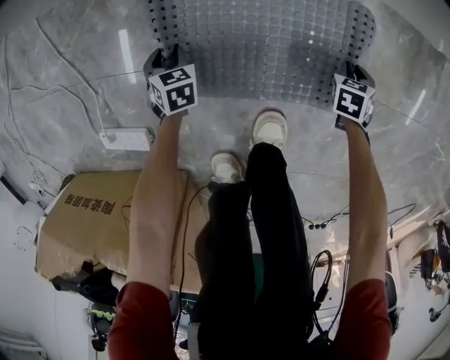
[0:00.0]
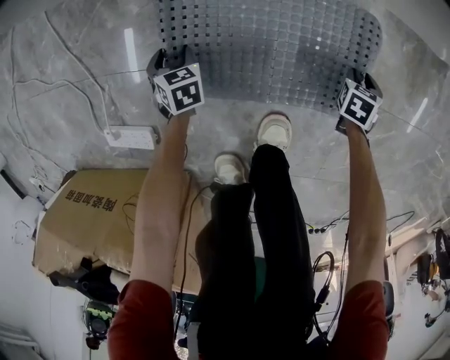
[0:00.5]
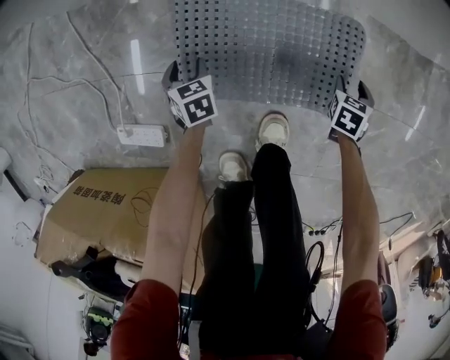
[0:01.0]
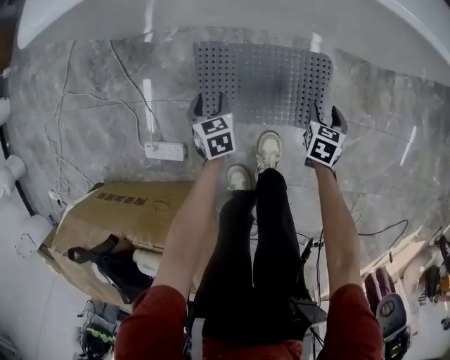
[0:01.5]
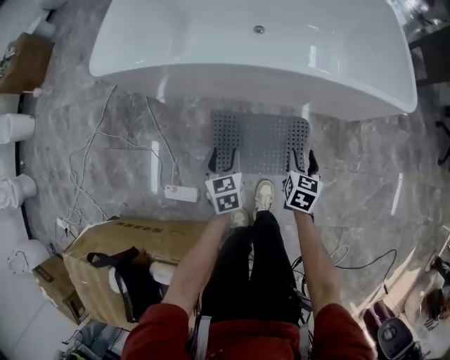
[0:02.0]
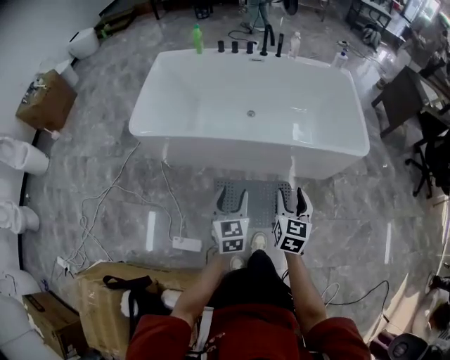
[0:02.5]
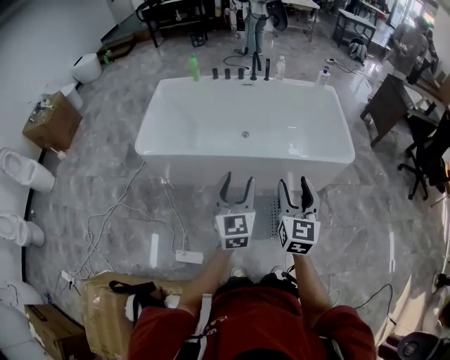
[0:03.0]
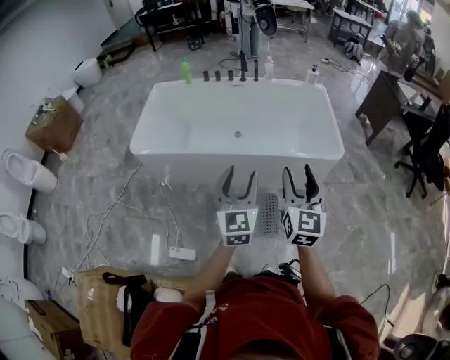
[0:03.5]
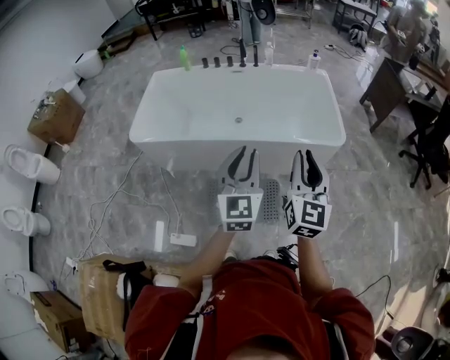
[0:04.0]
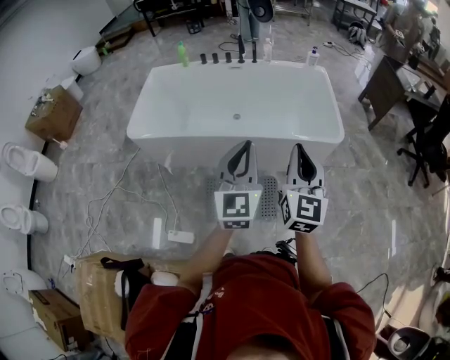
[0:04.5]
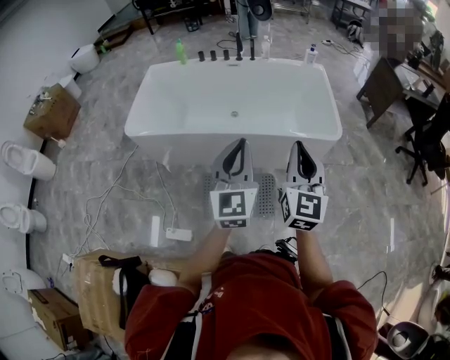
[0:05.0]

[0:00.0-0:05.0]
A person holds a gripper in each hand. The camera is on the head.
0:00.0 to 0:02.5: Both grippers move upward, approximately 80 cm. The left gripper tilts its fingers some 40 degrees upward, and opens up. The right gripper tilts its fingers some 50 degrees upward, and opens its fingers.
0:02.5 to 0:05.0: Both grippers travel together upward and to the right, roughly 30 cm. The left gripper turns by about 30 degrees, and closes; the right gripper changes its angle by approximately 30 degrees, and closes up.

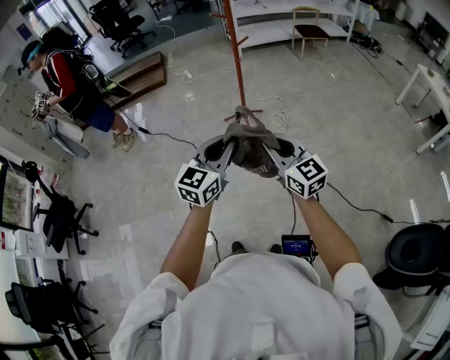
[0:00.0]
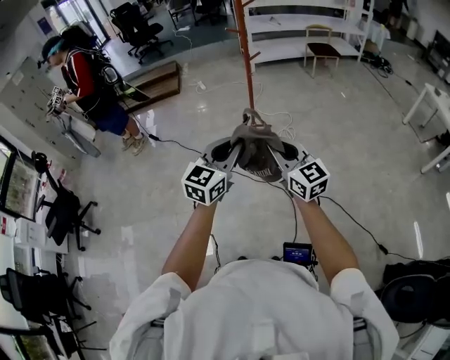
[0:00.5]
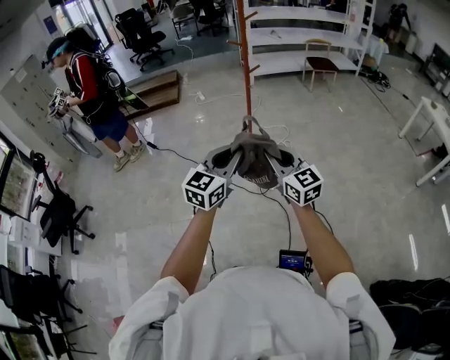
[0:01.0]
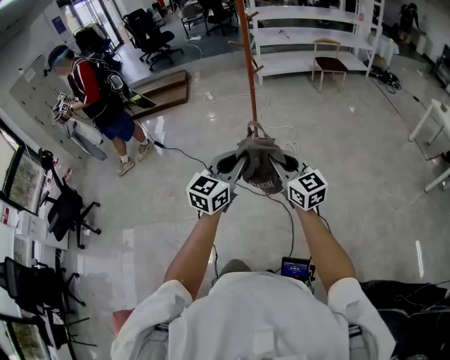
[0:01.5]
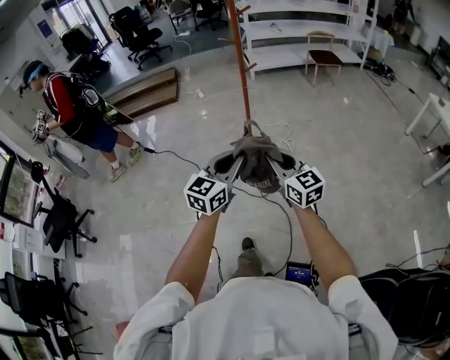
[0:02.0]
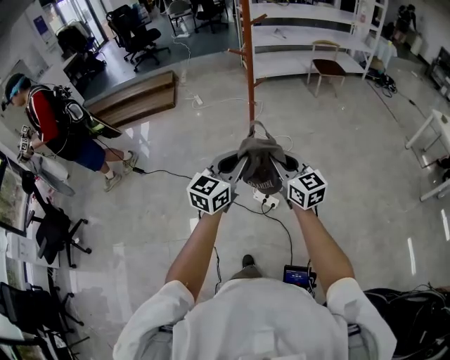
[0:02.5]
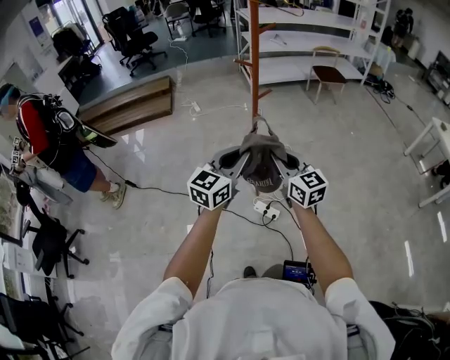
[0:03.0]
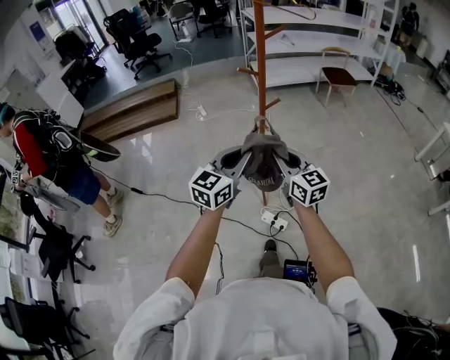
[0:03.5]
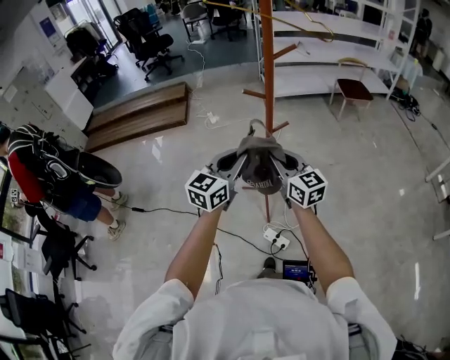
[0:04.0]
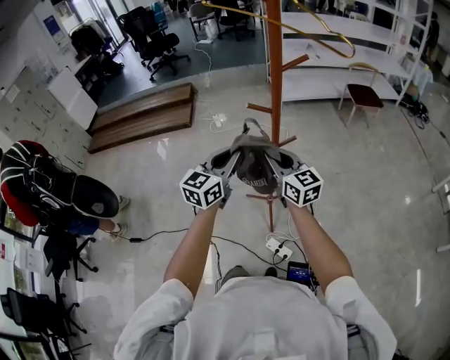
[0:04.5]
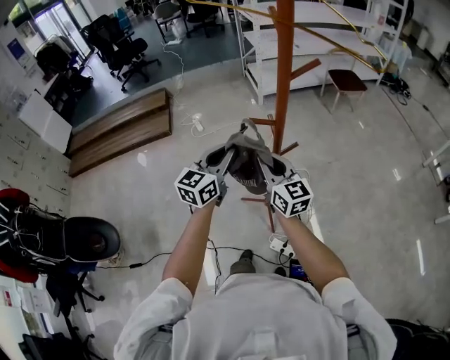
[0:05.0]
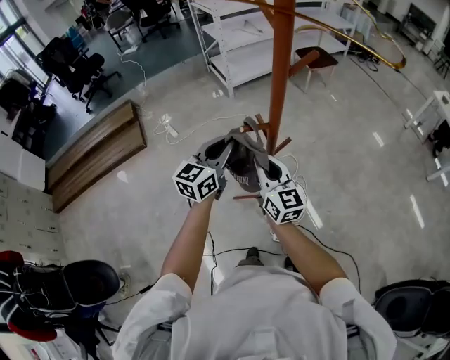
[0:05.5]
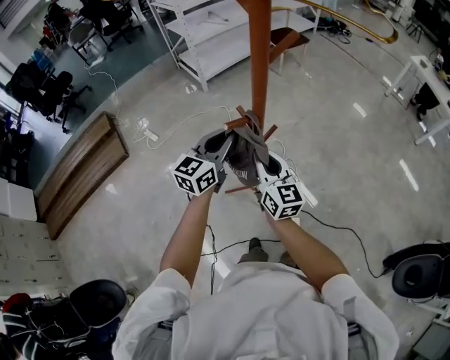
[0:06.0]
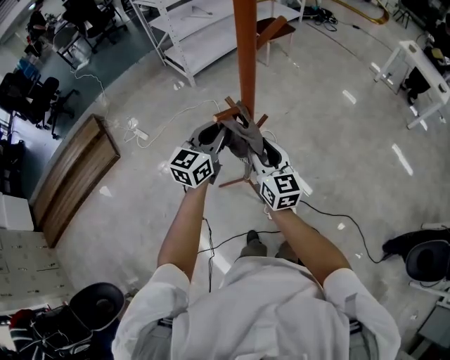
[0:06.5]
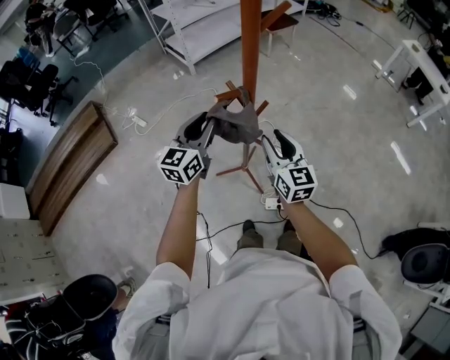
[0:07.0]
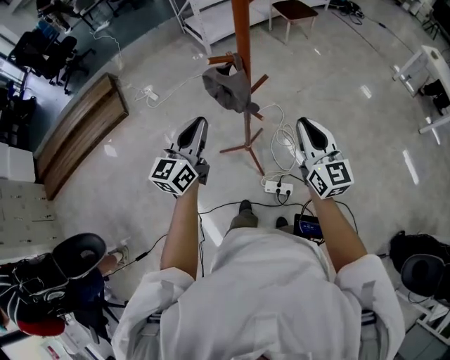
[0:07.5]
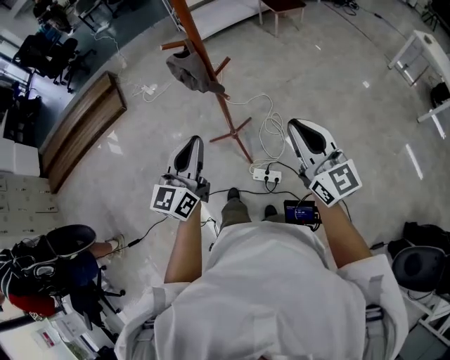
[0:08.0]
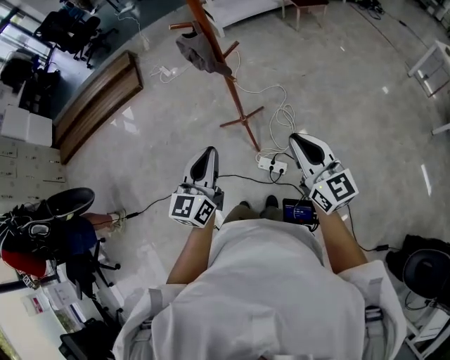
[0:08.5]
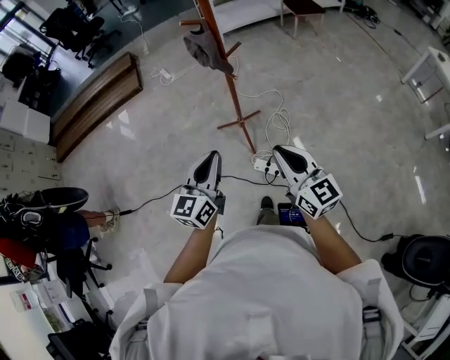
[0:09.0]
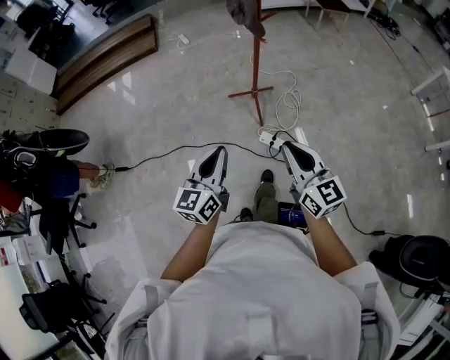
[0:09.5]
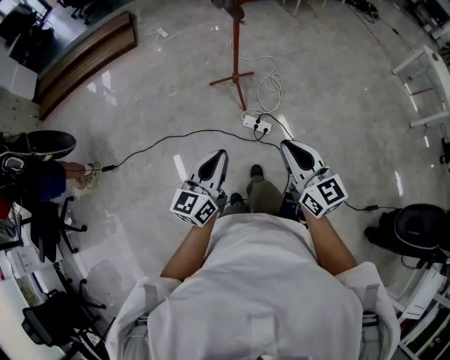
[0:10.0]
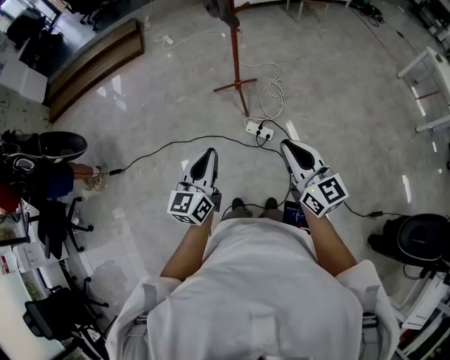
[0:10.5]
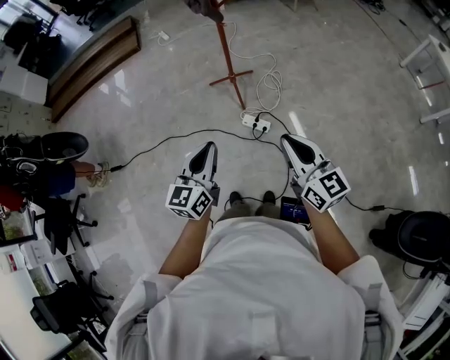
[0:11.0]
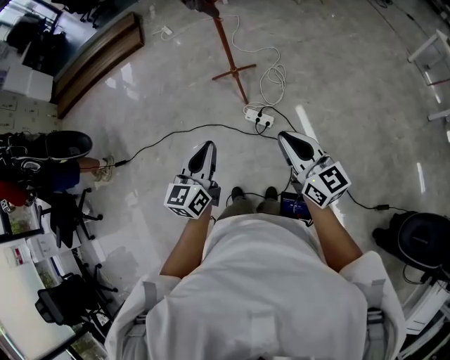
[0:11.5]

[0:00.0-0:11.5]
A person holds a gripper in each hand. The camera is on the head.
0:00.0 to 0:02.0: The two grippers go about 10 cm forward and to the right.
0:02.0 to 0:04.0: The two grippers travel together, forward, approximately 50 cm.
0:04.0 to 0:06.0: The left gripper shifts by roughly 30 cm, and turns by about 30 degrees, while the right gripper changes place by some 25 cm, and turns by some 40 degrees.
0:06.0 to 0:07.5: The right gripper is displaced to the right and backward by approximately 20 cm, and opens, then closes again. The left gripper heads backward, covering roughly 15 cm.
0:07.5 to 0:09.5: The two grippers travel together, backward, approximately 50 cm. The right gripper swivels roughly 30 degrees; the left gripper rotates some 20 degrees.
0:09.5 to 0:11.5: The two grippers go about 15 cm to the right and backward.

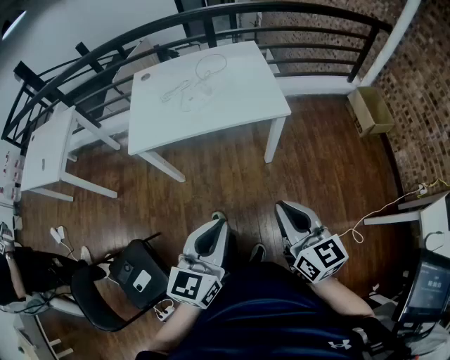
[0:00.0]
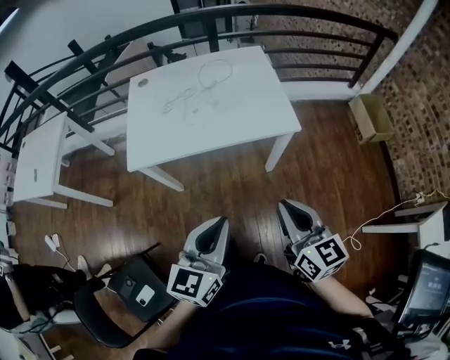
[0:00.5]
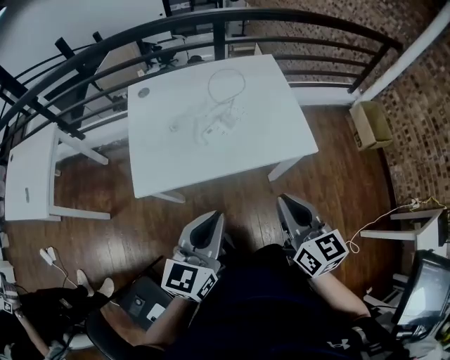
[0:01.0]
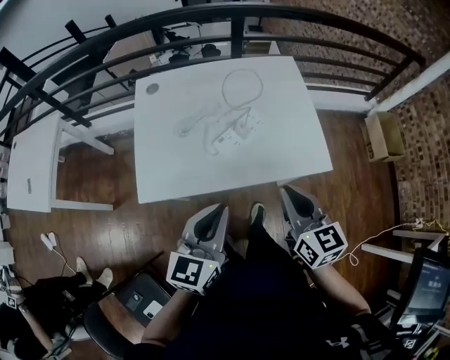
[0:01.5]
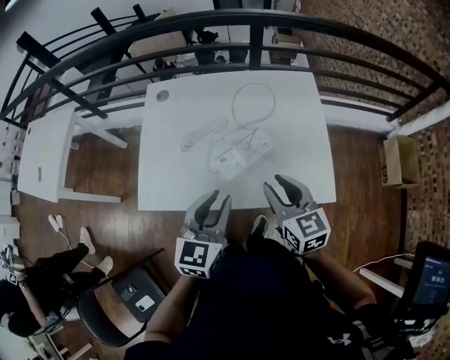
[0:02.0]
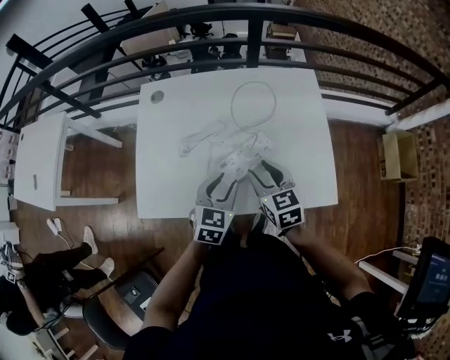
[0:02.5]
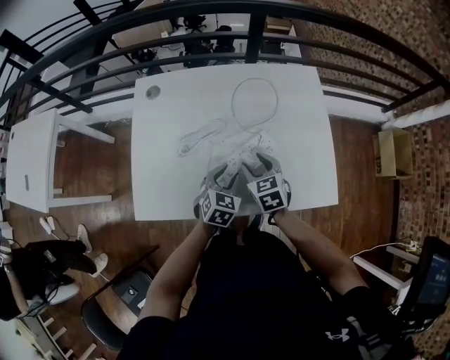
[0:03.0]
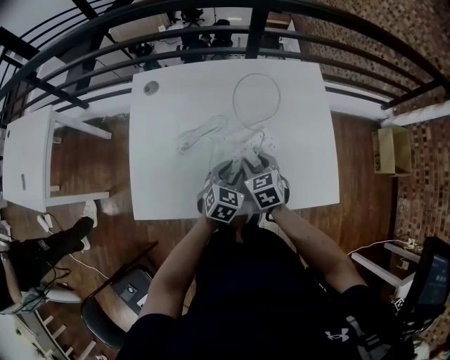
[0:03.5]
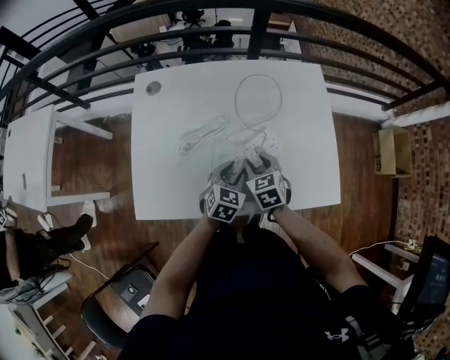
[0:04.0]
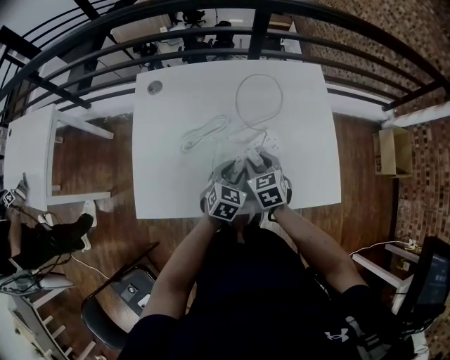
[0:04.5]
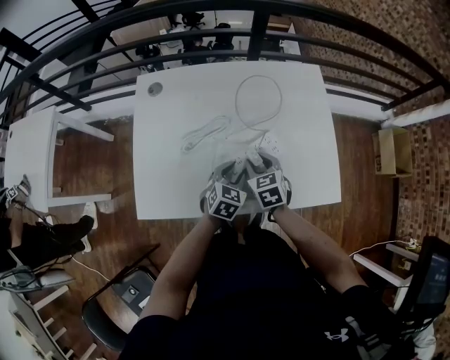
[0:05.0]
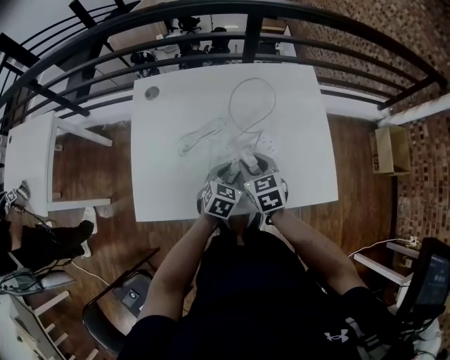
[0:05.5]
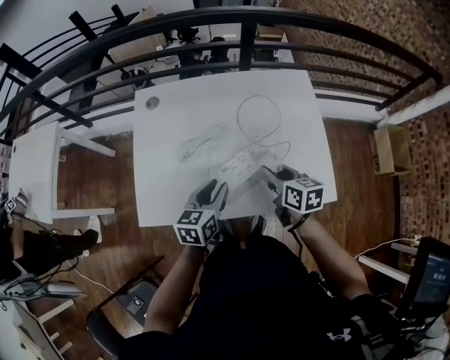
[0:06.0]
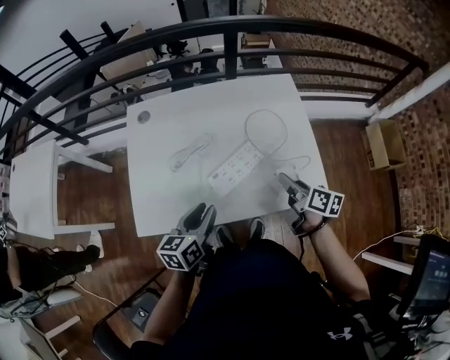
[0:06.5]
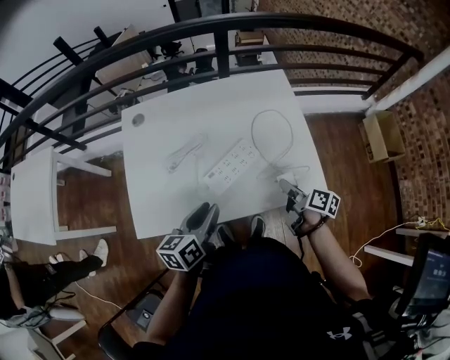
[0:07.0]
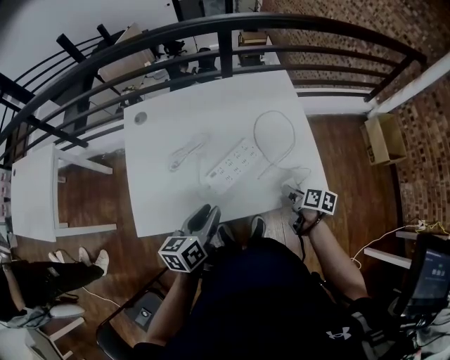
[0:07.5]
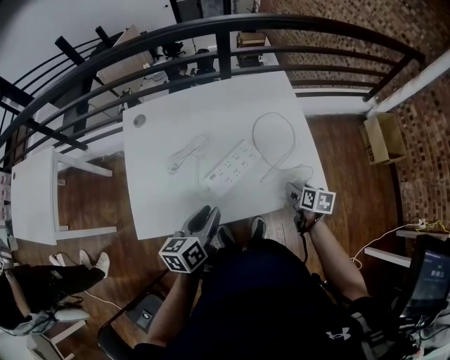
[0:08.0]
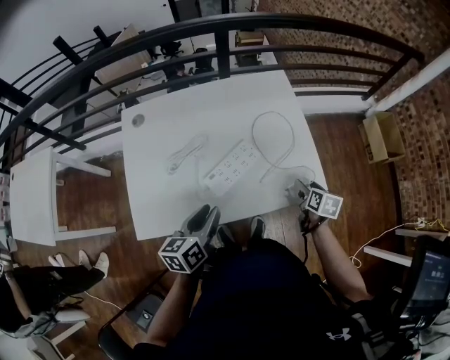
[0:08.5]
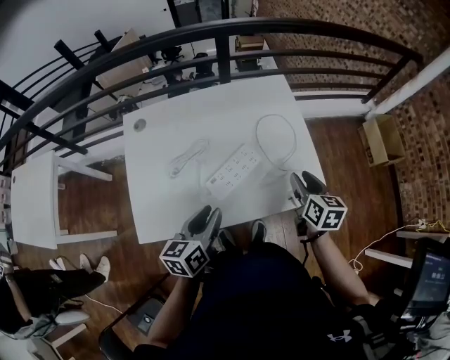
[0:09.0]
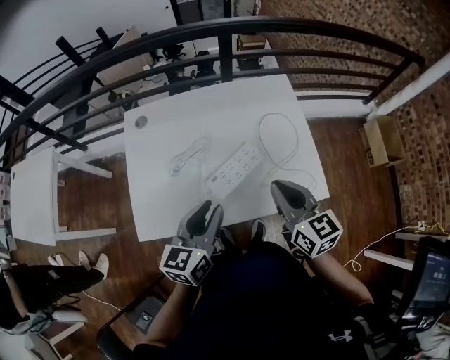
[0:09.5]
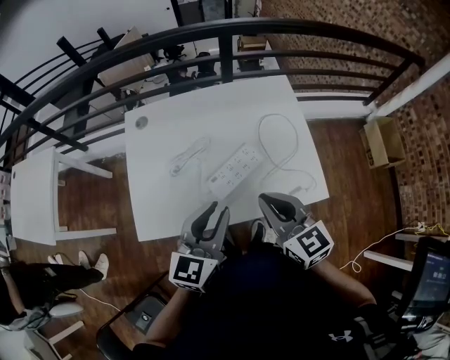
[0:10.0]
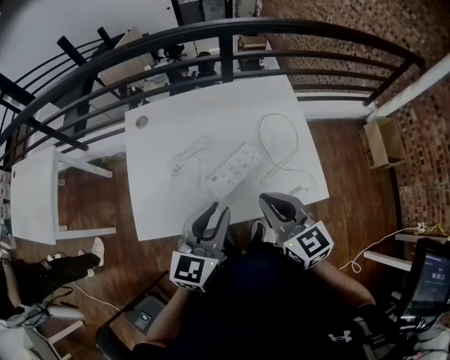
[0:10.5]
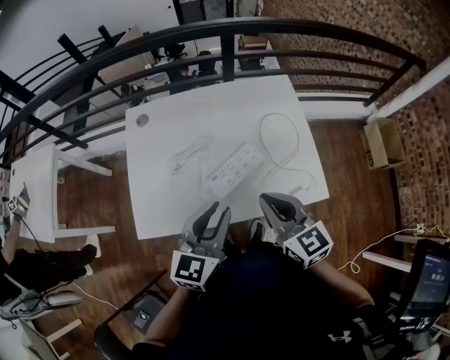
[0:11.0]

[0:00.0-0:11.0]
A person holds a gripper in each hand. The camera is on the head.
0:00.0 to 0:02.0: The two grippers travel together, forward, about 40 cm. The left gripper opens up, while the right gripper opens.
0:02.0 to 0:03.5: The left gripper heads downward and forward, covering about 25 cm, and rotates about 30 degrees; the right gripper shifts approximately 20 cm downward, forward and to the left, and turns by some 30 degrees.
0:03.5 to 0:05.5: There are only small adjustments of the grippers.
0:05.5 to 0:07.5: The left gripper heads upward and backward, covering approximately 15 cm, and changes its angle by approximately 40 degrees, while the right gripper shifts roughly 25 cm to the right and backward, and rotates around the line of its fingers by roughly 60 degrees, clockwise from behind.
0:07.5 to 0:09.0: The right gripper goes some 15 cm upward, turns by roughly 30 degrees, and opens and closes again.
0:09.0 to 0:11.0: The left gripper goes approximately 10 cm upward, and swivels about 30 degrees; the right gripper goes some 20 cm to the left and upward, swivels approximately 40 degrees, and closes.
